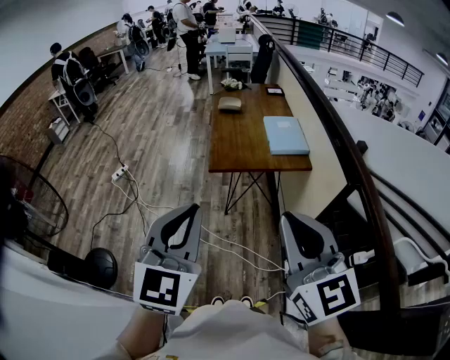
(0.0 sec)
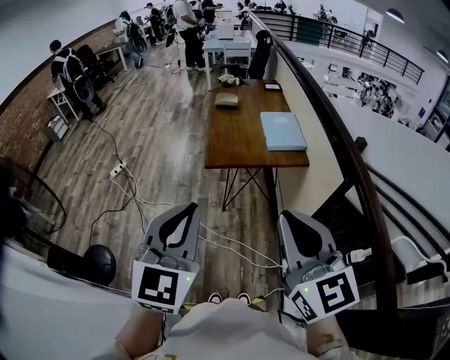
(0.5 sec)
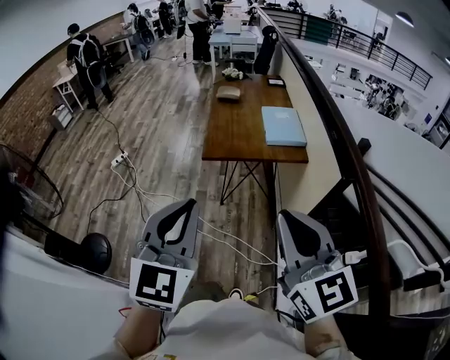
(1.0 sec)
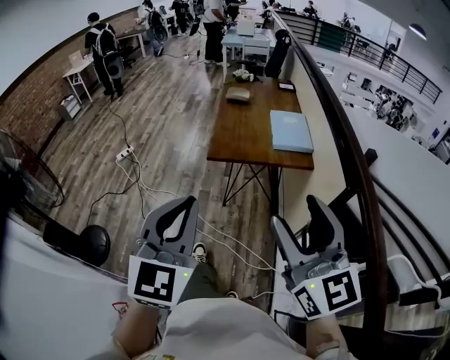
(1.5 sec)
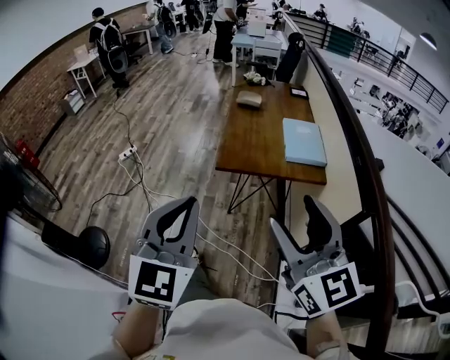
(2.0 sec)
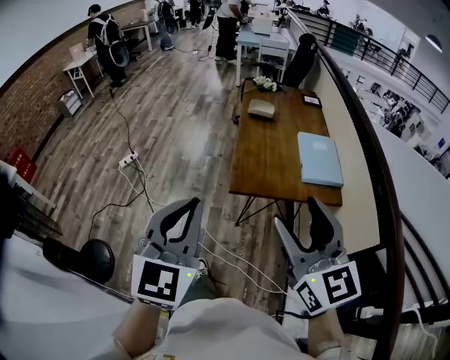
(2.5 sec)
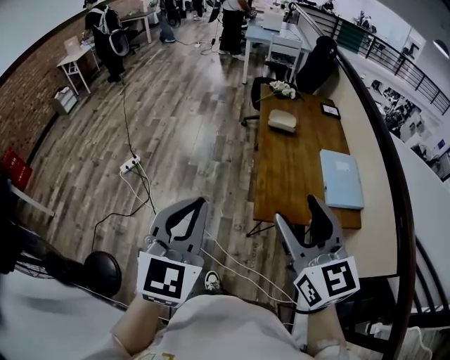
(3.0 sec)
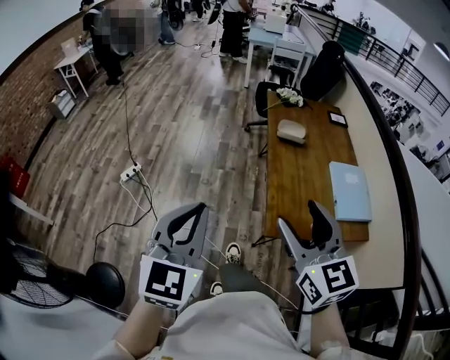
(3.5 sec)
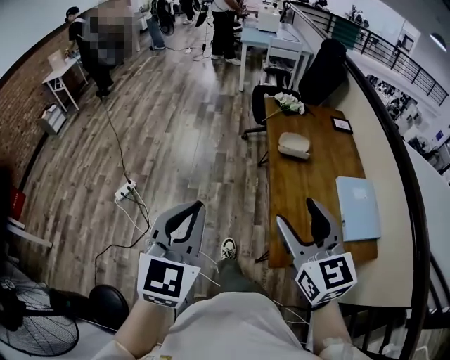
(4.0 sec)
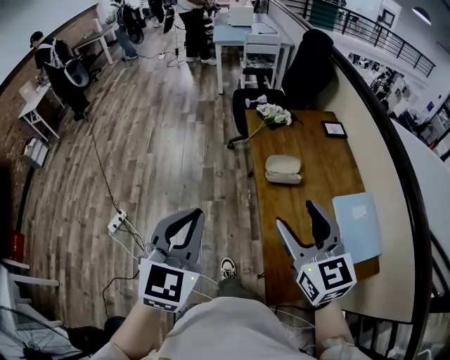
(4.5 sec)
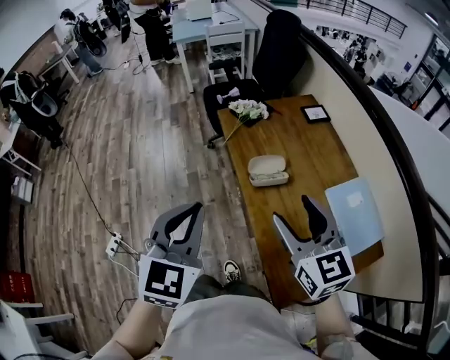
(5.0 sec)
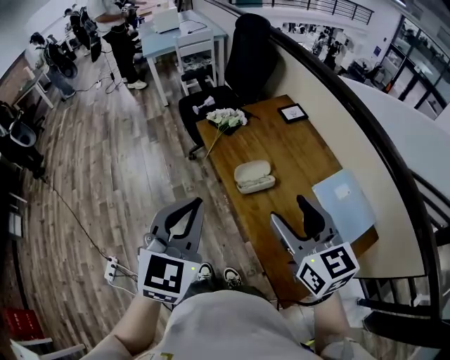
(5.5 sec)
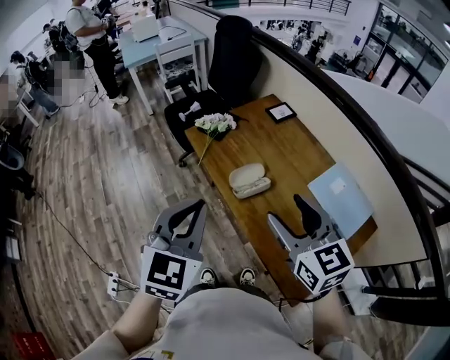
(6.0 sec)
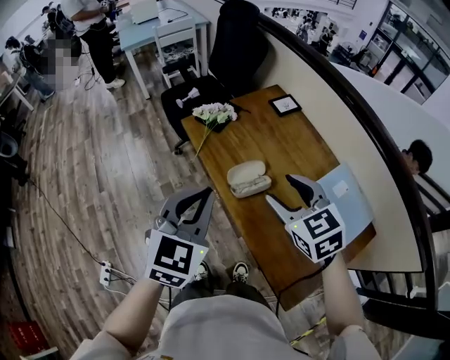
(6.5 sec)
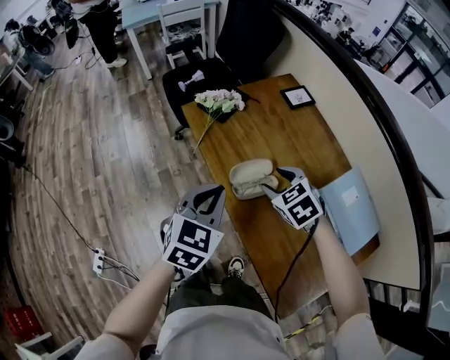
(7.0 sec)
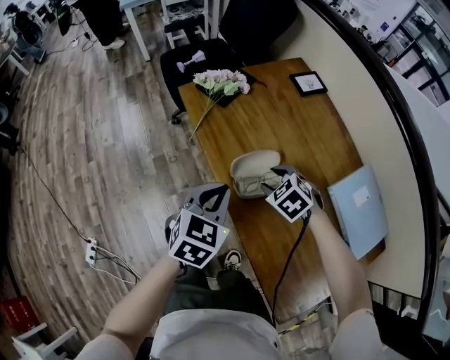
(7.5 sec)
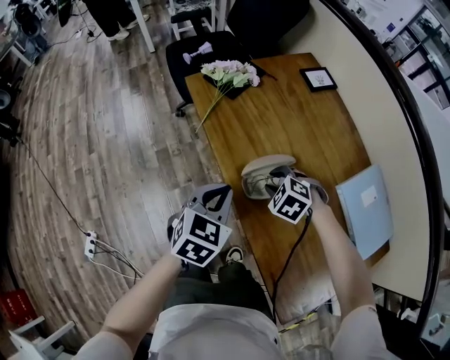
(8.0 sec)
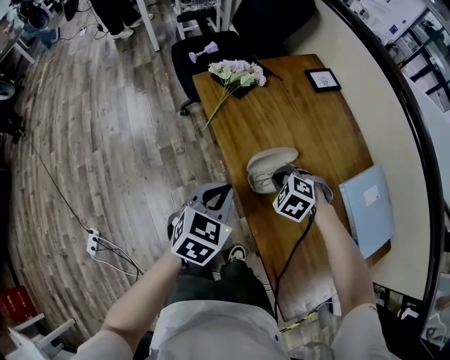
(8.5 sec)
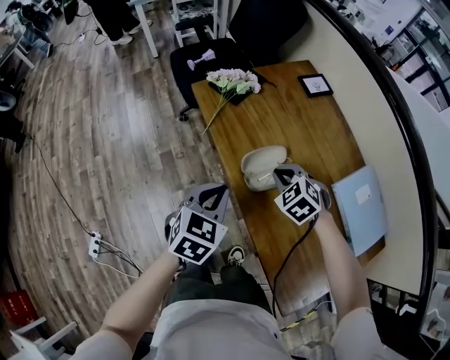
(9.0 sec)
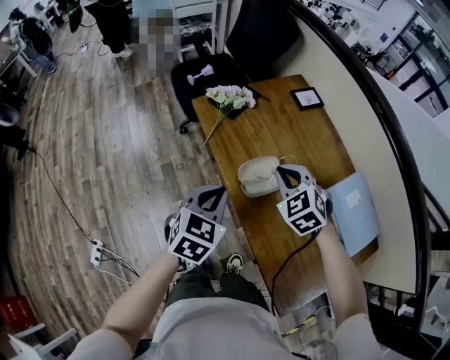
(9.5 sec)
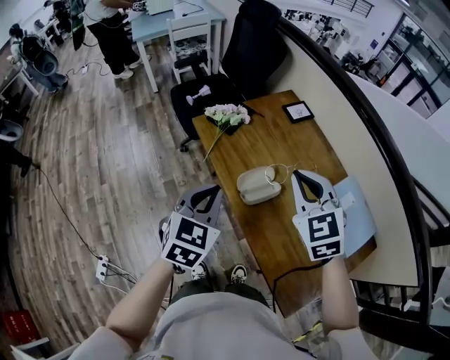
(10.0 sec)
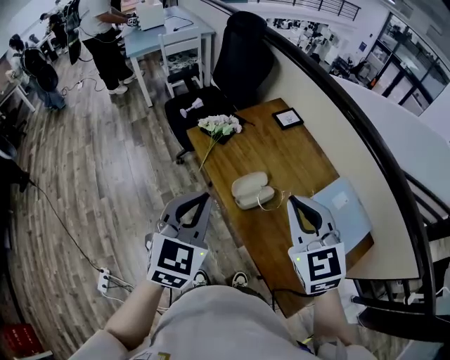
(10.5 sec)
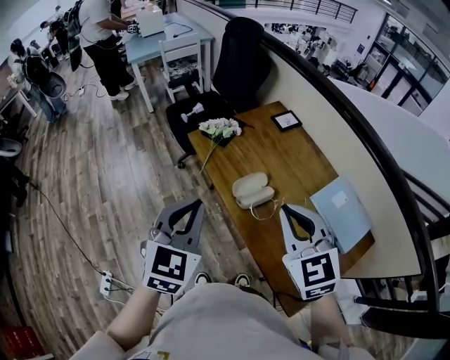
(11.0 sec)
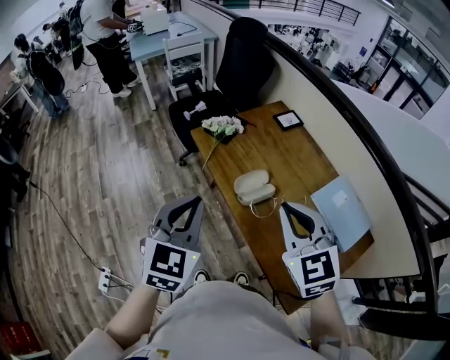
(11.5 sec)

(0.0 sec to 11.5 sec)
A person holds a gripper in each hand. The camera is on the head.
0.0 sec - 2.0 sec: The two grippers go approximately 10 cm forward. The right gripper opens up.
2.0 sec - 4.0 sec: The pair of grippers is taken forward and to the left, some 60 cm.
4.0 sec - 6.0 sec: The right gripper changes place by some 30 cm, and changes its angle by some 30 degrees. The left gripper ends up roughly 40 cm from where it was, and changes its angle by roughly 40 degrees.
6.0 sec - 7.5 sec: Both grippers travel together downward and forward, some 35 cm. The right gripper points its fingers some 50 degrees further downward; the left gripper swivels approximately 20 degrees.
7.5 sec - 9.5 sec: The right gripper goes about 15 cm upward, changes its angle by approximately 20 degrees, and closes its fingers; the left gripper goes some 5 cm upward.
9.5 sec - 11.5 sec: Both grippers move upward and backward, about 25 cm. The right gripper changes its angle by roughly 30 degrees.

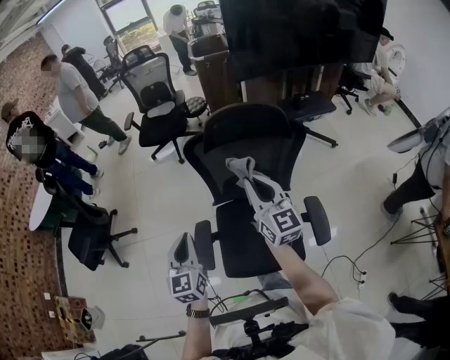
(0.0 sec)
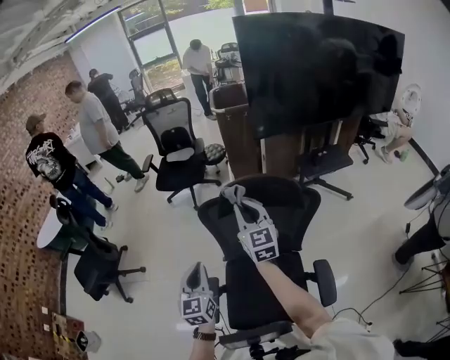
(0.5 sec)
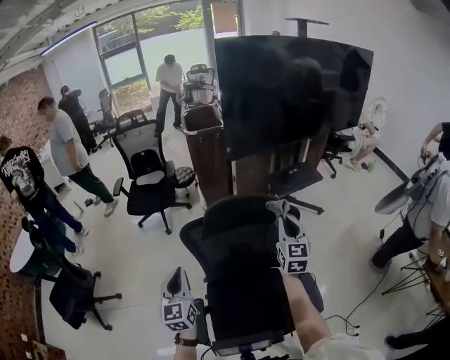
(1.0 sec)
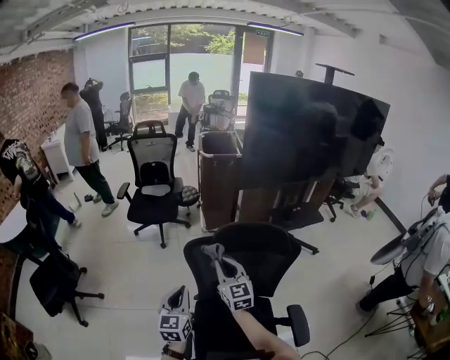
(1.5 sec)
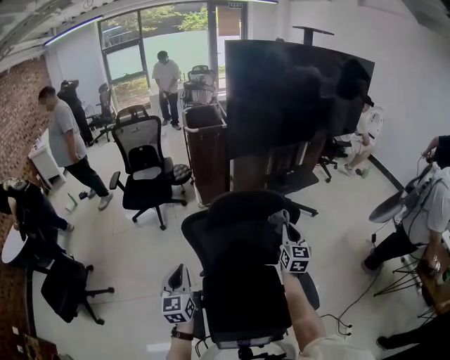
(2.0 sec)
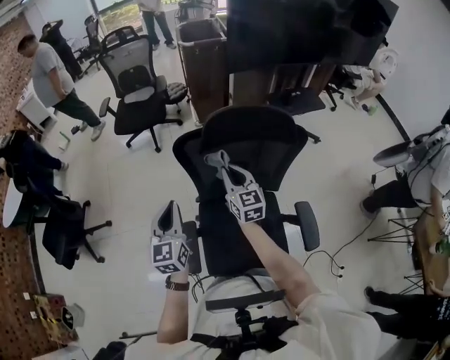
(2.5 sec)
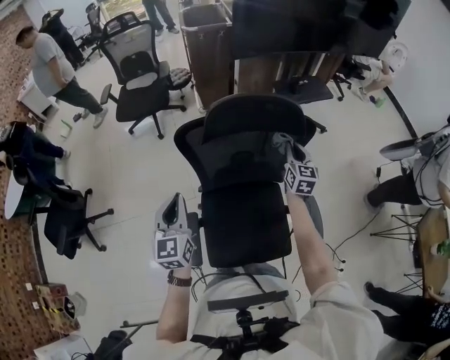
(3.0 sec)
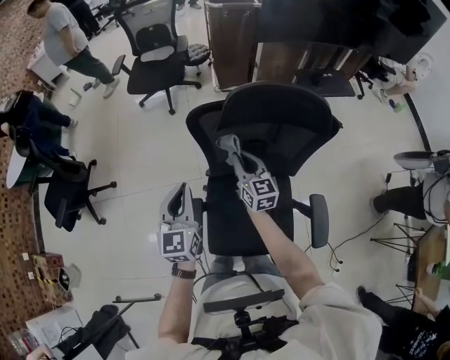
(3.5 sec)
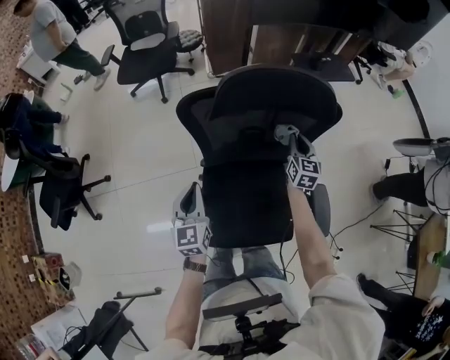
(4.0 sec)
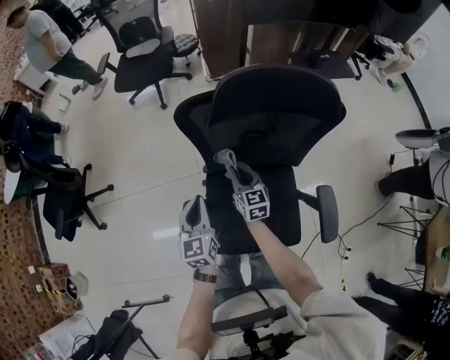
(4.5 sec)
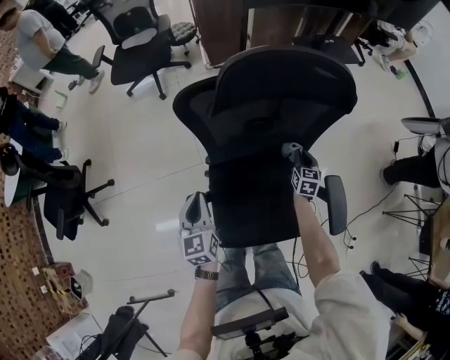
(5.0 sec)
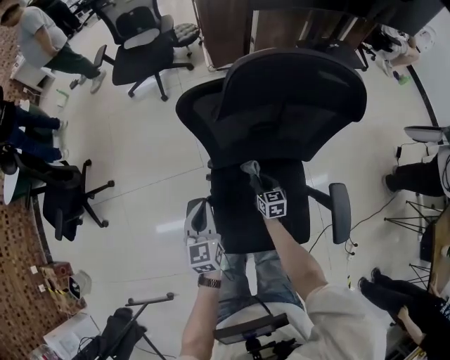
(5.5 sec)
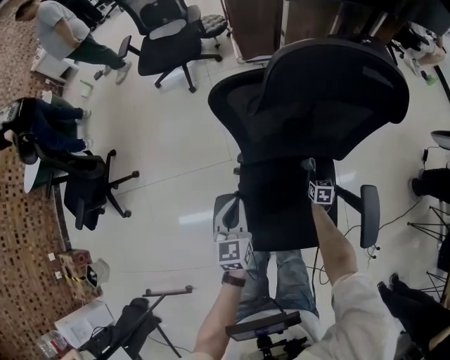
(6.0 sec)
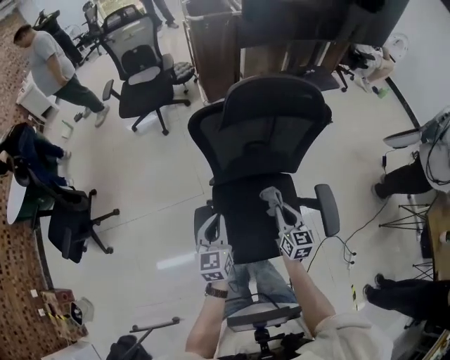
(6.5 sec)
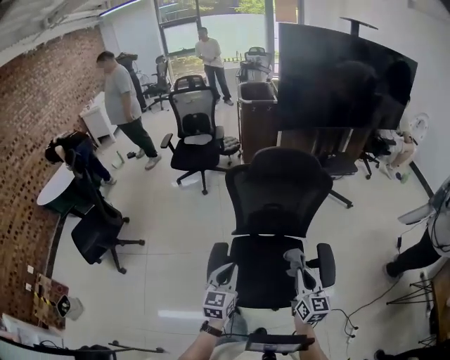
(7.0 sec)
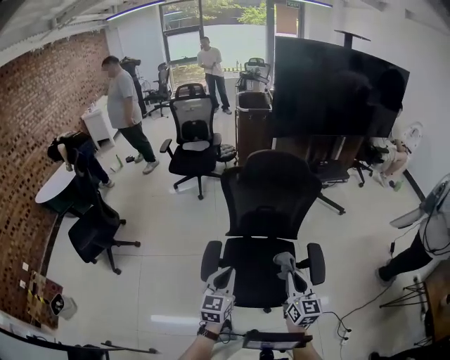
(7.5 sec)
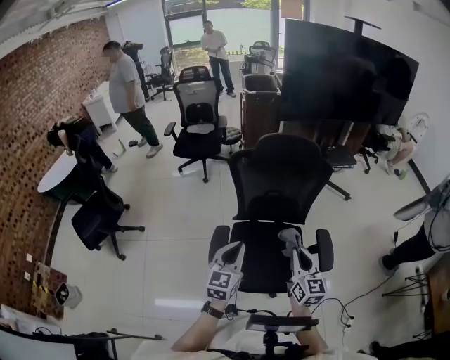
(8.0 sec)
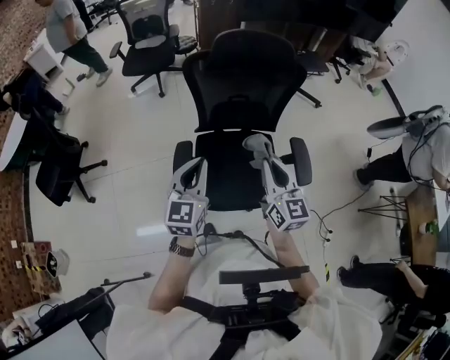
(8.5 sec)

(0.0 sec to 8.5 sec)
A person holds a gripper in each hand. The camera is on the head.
0.0 sec - 2.0 sec: The right gripper goes left and right, roughly 30 cm each way, reversing 2 times, and turns by approximately 30 degrees. The left gripper moves forward, approximately 15 cm.
2.0 sec - 4.0 sec: The left gripper heads downward, covering approximately 20 cm, while the right gripper travels downward and forward by some 30 cm.
4.0 sec - 6.5 sec: The left gripper moves backward, some 10 cm, and travels downward and back again, some 15 cm each way, while the right gripper heads backward and to the left, covering some 30 cm, and goes downward and returns, roughly 35 cm each way.
6.5 sec - 8.5 sec: Both grippers move backward and upward, some 30 cm. The right gripper swivels about 20 degrees.

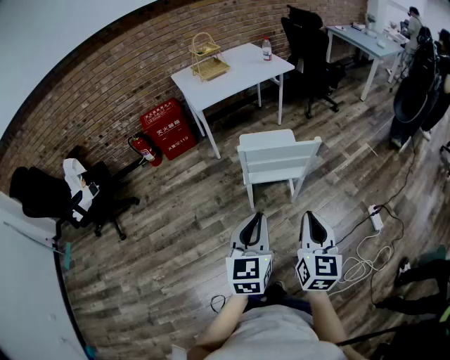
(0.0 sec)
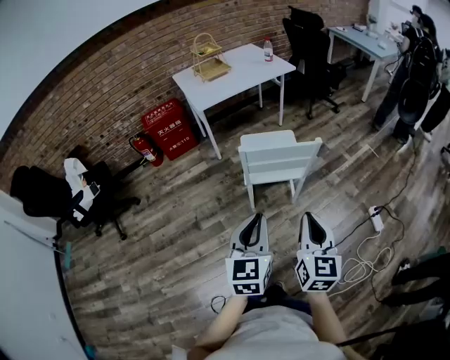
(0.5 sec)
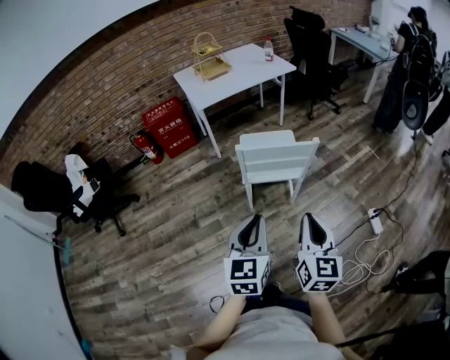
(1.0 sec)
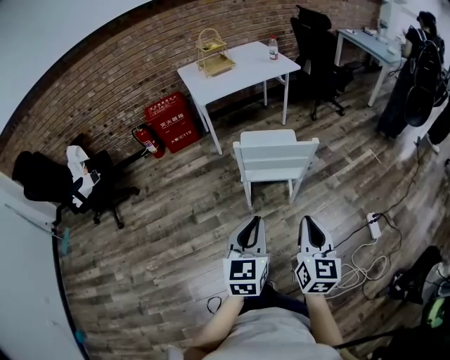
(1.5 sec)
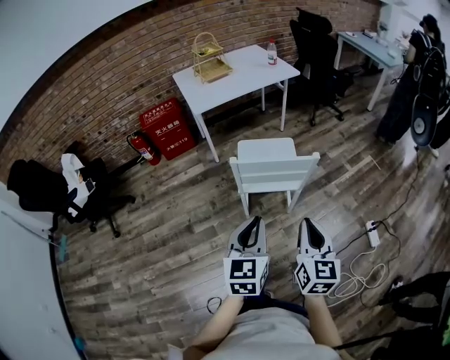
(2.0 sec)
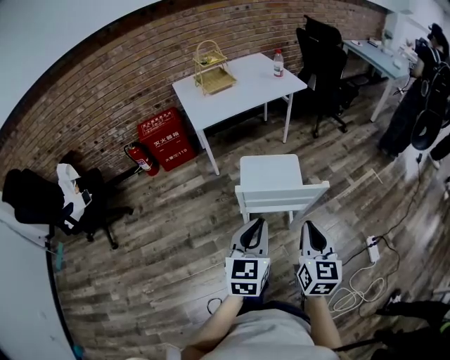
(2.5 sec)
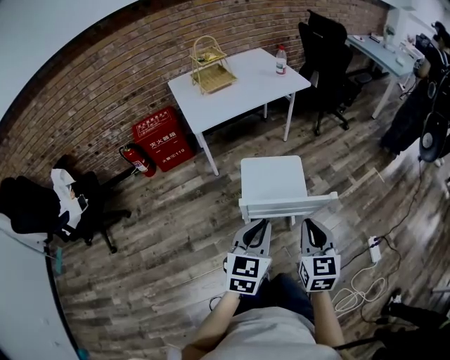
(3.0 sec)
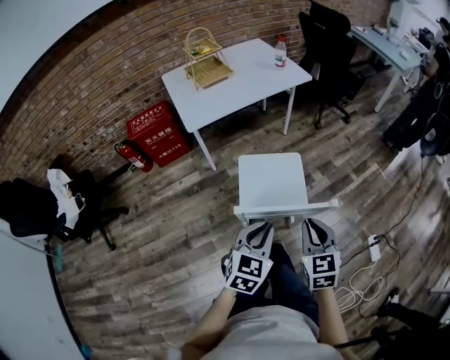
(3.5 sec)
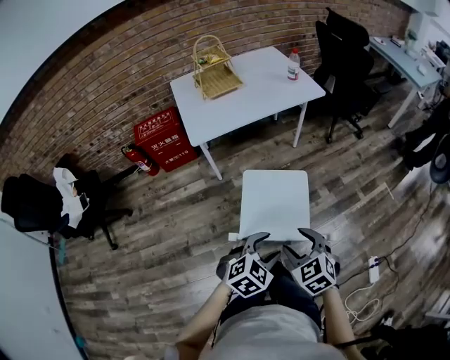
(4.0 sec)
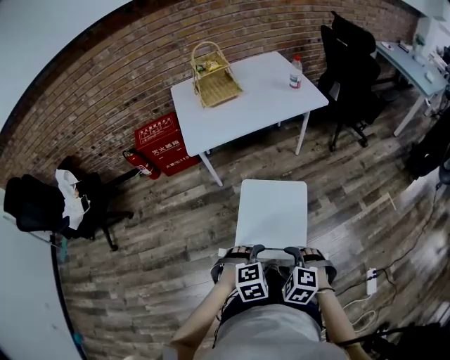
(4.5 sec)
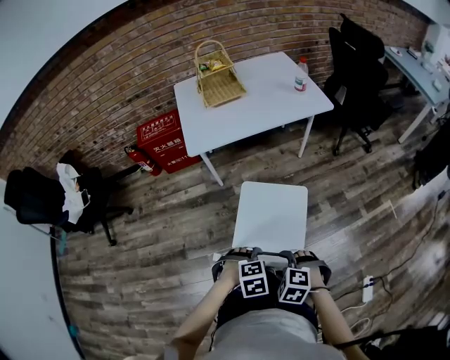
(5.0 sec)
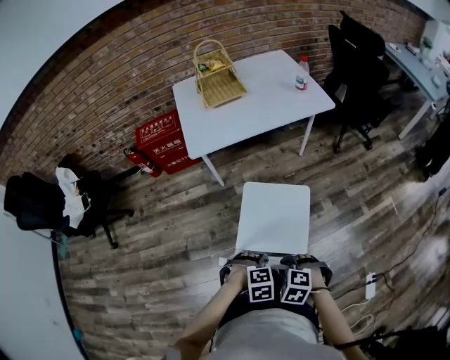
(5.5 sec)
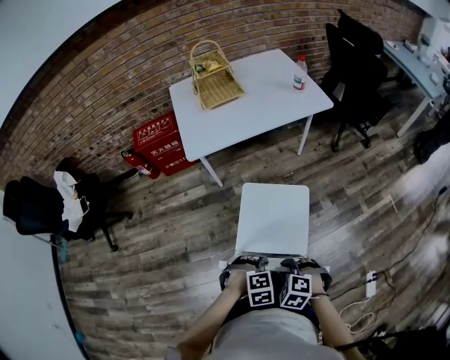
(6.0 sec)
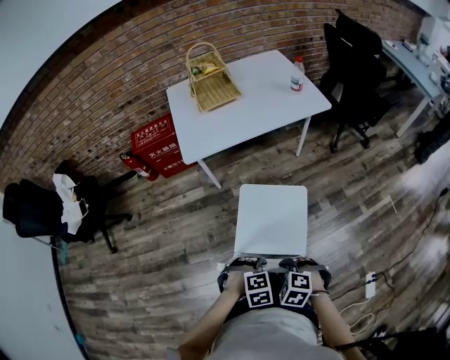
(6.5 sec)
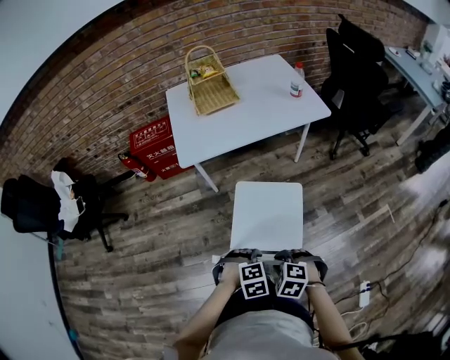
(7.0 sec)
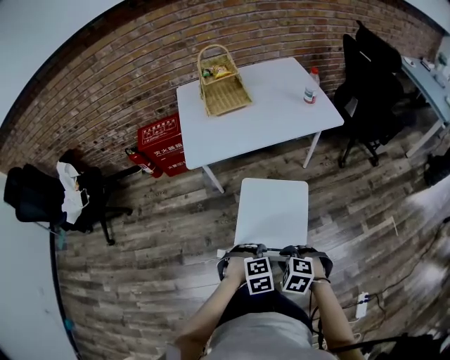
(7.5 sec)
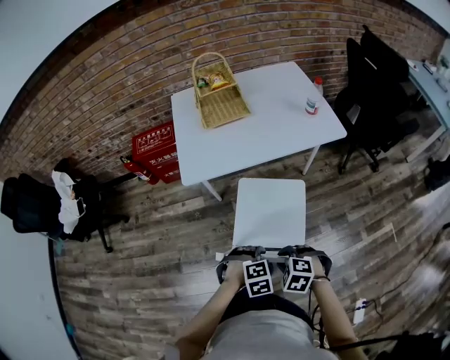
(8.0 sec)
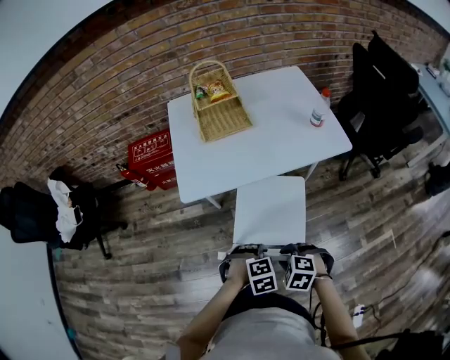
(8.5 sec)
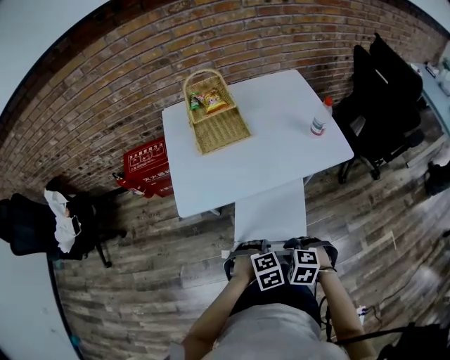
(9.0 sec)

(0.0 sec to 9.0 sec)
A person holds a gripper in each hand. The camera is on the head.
0.0 sec - 2.0 sec: The grippers both shift forward by some 5 cm.
2.0 sec - 4.5 sec: Both grippers move forward and downward, some 30 cm. The right gripper angles its fingers downward, by some 50 degrees, and opens up; the left gripper points its fingers roughly 50 degrees further downward, and opens.
4.5 sec - 7.0 sec: The left gripper moves about 10 cm, and closes its fingers; the right gripper changes place by approximately 10 cm, and closes its fingers.
7.0 sec - 9.0 sec: The right gripper ends up about 30 cm from where it was. Meanwhile the left gripper ends up roughly 30 cm from where it was.
